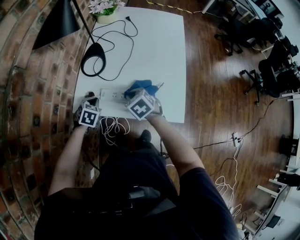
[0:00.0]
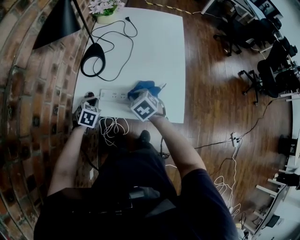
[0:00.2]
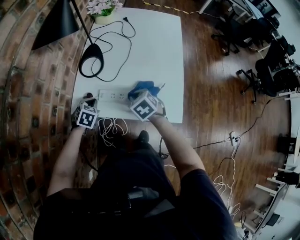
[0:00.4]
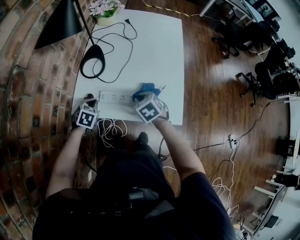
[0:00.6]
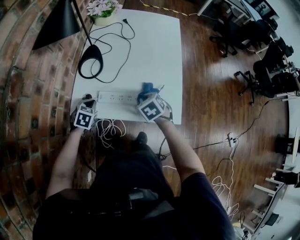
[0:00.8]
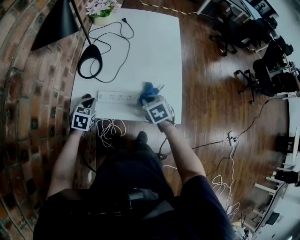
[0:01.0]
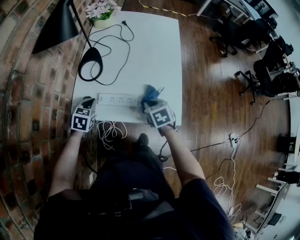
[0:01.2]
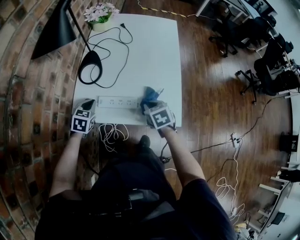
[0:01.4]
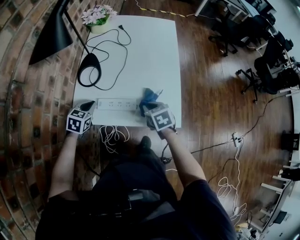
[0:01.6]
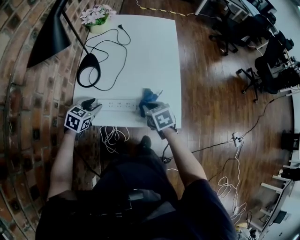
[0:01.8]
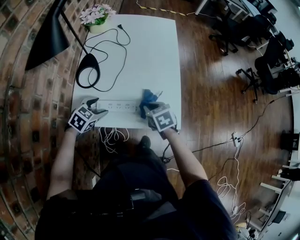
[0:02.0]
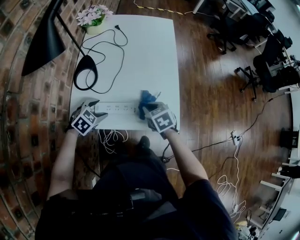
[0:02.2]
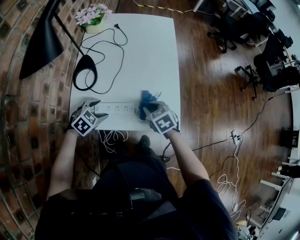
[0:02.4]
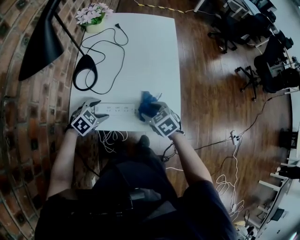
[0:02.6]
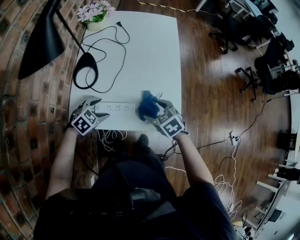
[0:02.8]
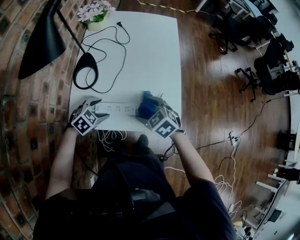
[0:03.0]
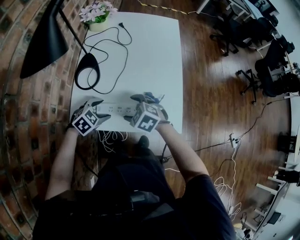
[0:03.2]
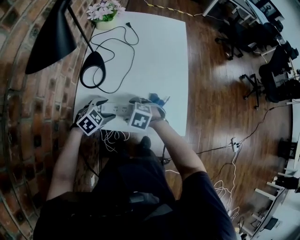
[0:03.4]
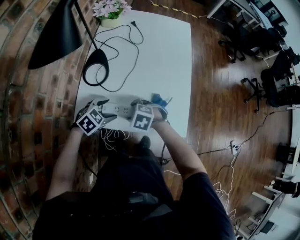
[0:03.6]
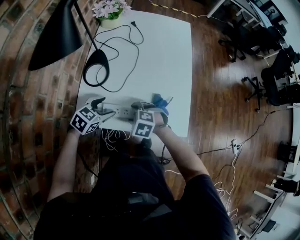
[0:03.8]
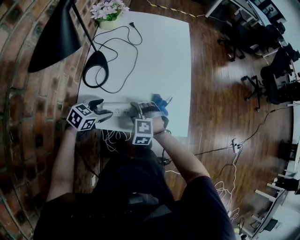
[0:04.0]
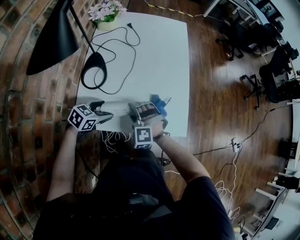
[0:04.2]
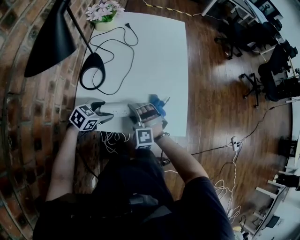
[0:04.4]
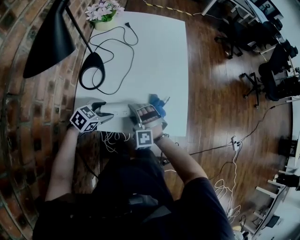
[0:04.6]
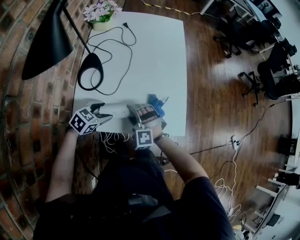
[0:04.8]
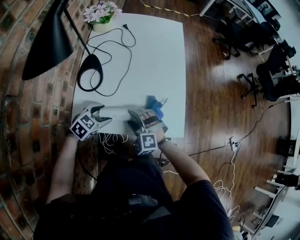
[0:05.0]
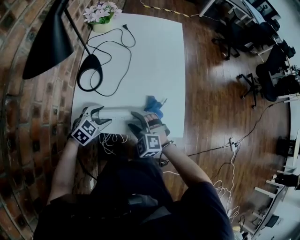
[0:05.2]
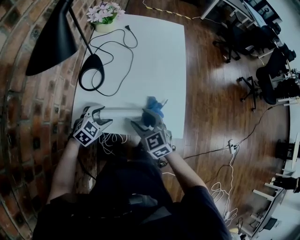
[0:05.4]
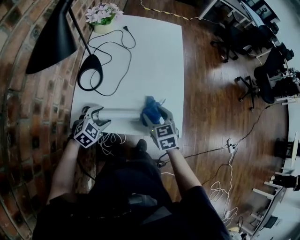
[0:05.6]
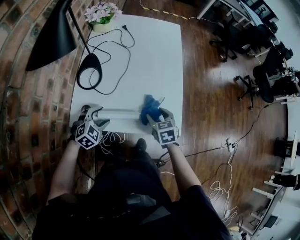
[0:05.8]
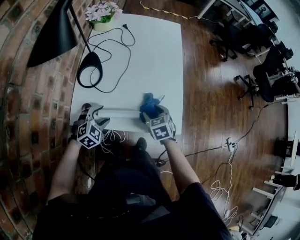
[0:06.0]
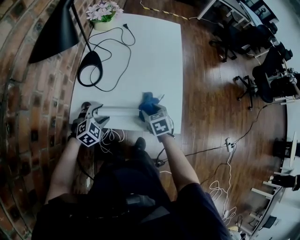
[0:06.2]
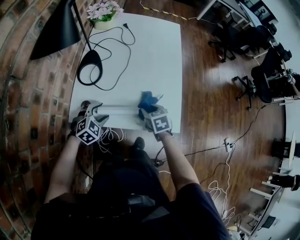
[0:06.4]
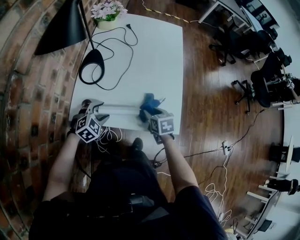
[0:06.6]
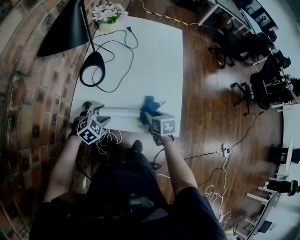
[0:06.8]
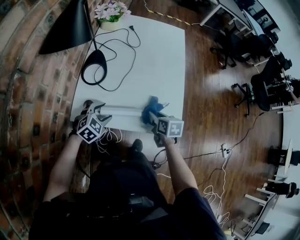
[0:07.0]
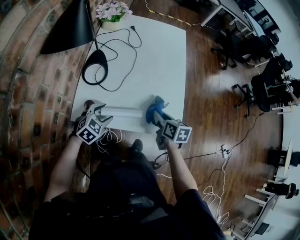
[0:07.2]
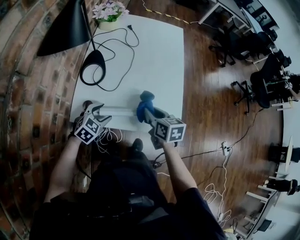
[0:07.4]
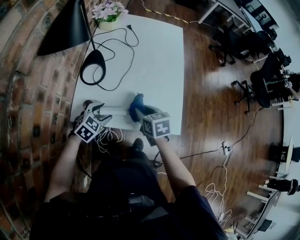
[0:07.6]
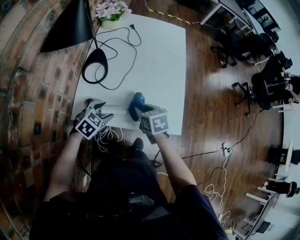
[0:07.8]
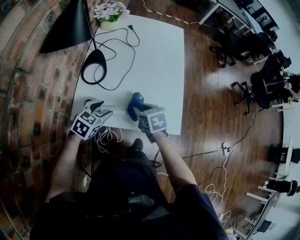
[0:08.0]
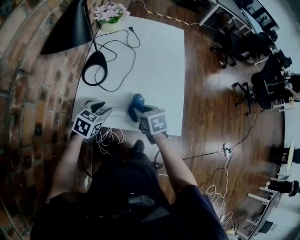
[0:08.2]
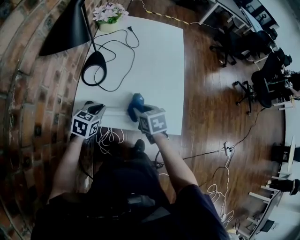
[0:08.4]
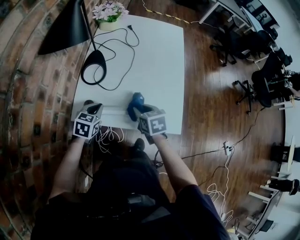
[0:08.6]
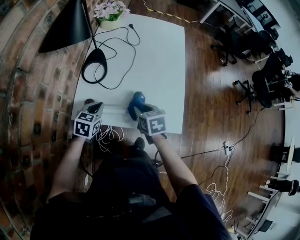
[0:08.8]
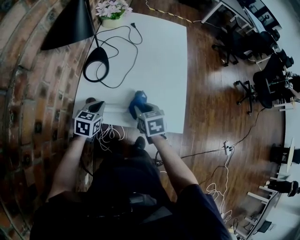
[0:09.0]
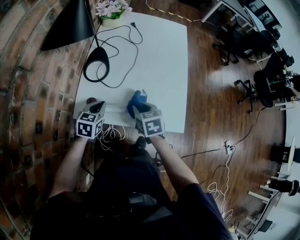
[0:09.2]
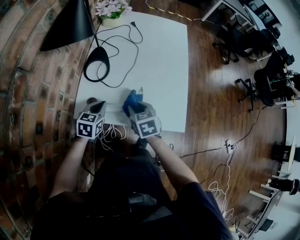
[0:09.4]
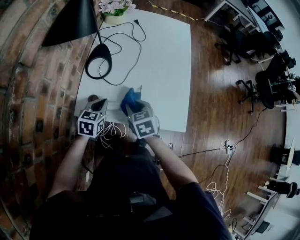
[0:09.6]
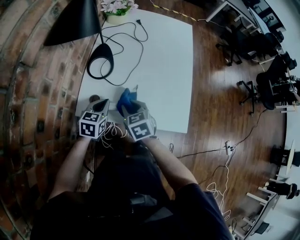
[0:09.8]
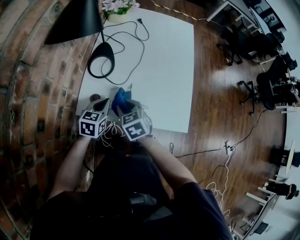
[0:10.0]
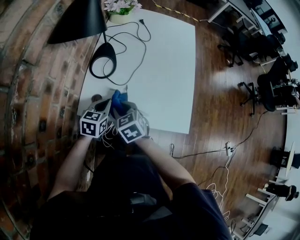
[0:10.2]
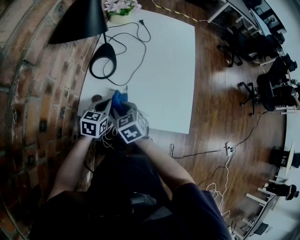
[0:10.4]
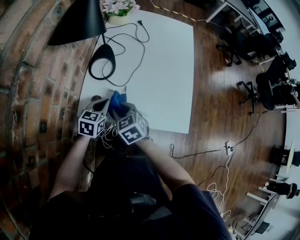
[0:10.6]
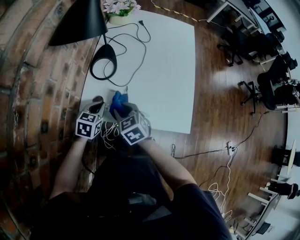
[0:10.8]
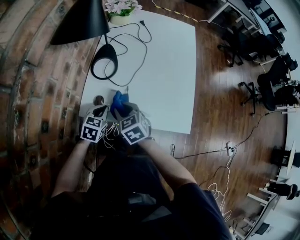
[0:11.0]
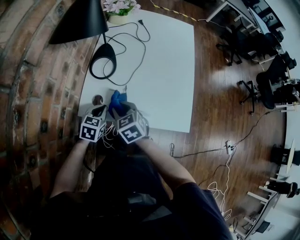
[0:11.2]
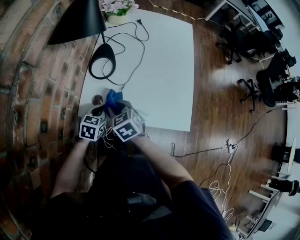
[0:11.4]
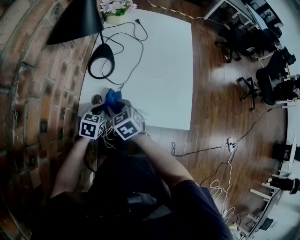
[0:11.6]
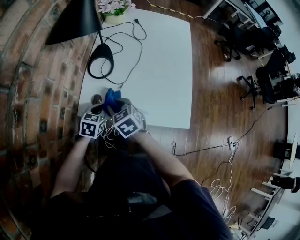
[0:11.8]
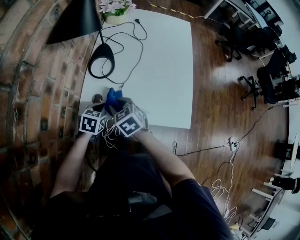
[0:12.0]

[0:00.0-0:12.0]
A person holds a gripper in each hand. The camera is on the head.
0:00.0 to 0:01.6: The right gripper goes approximately 10 cm to the right, and swivels about 20 degrees.
0:01.6 to 0:03.0: The left gripper travels to the right by approximately 5 cm, changes its angle by roughly 30 degrees, and opens its fingers. The right gripper rotates some 30 degrees, and opens.
0:03.0 to 0:04.4: The left gripper turns by some 20 degrees; the right gripper ends up roughly 10 cm from where it was, and twists approximately 50 degrees counterclockwise, seen from behind.
0:04.4 to 0:06.0: The left gripper swivels about 30 degrees, while the right gripper is displaced to the right by some 10 cm, and rolls clockwise, seen from behind, by approximately 70 degrees.
0:06.0 to 0:07.6: The right gripper goes some 10 cm to the left and upward, and closes its fingers.
0:07.6 to 0:09.0: The left gripper shifts by approximately 5 cm, swivels about 30 degrees, and closes its fingers.
0:09.0 to 0:10.4: The right gripper travels to the left by roughly 15 cm.
0:10.4 to 0:12.0: The grippers stay close to where they were, moving slightly.

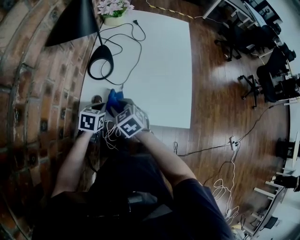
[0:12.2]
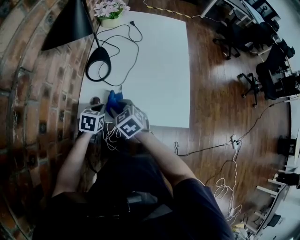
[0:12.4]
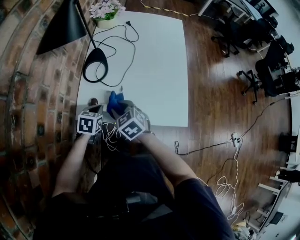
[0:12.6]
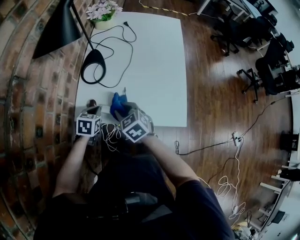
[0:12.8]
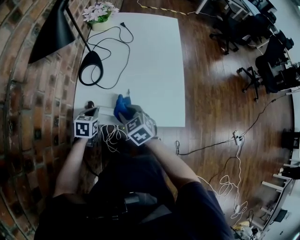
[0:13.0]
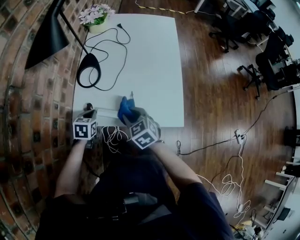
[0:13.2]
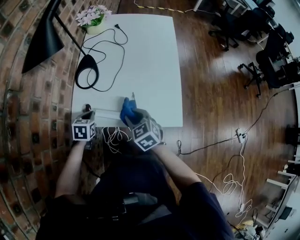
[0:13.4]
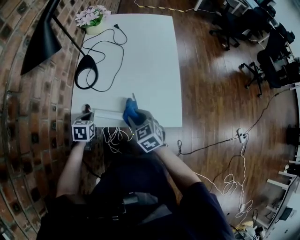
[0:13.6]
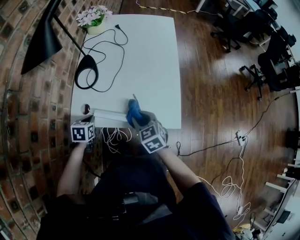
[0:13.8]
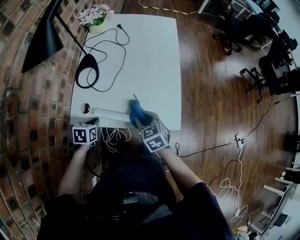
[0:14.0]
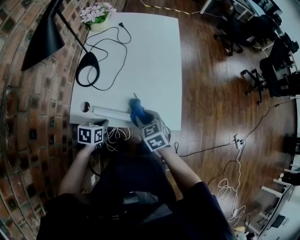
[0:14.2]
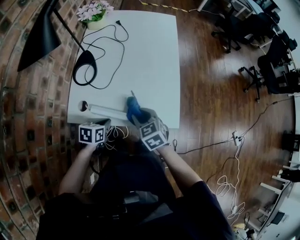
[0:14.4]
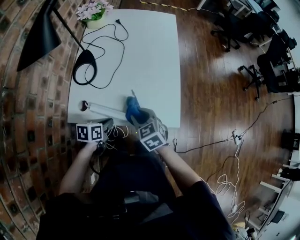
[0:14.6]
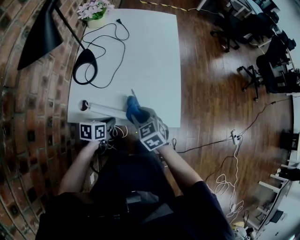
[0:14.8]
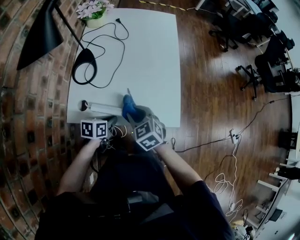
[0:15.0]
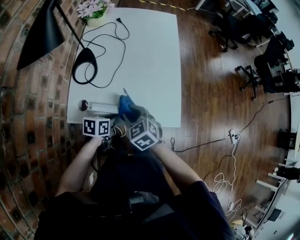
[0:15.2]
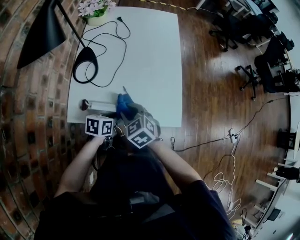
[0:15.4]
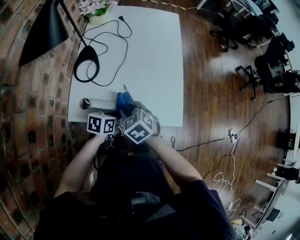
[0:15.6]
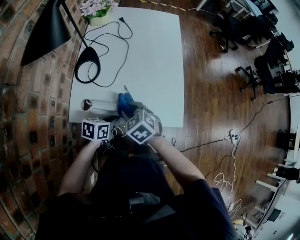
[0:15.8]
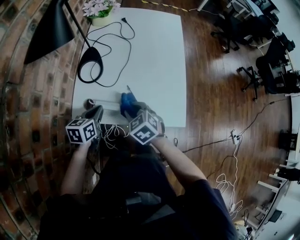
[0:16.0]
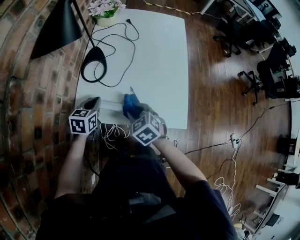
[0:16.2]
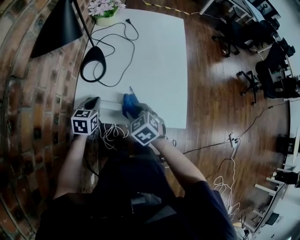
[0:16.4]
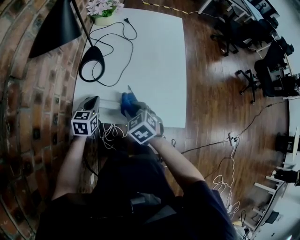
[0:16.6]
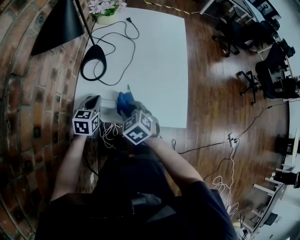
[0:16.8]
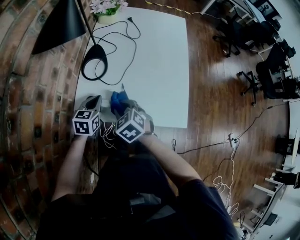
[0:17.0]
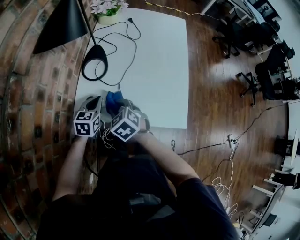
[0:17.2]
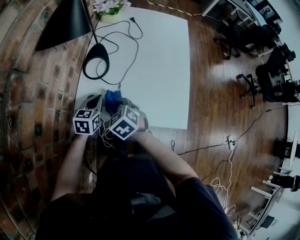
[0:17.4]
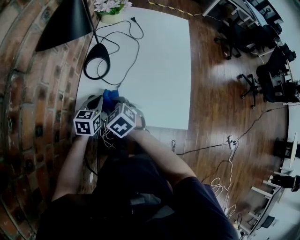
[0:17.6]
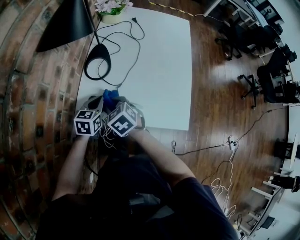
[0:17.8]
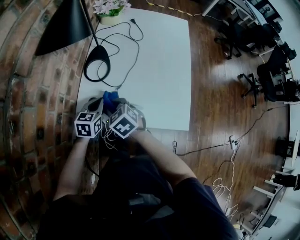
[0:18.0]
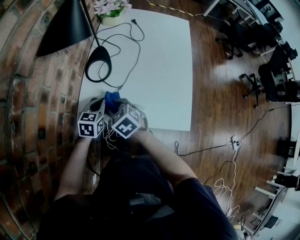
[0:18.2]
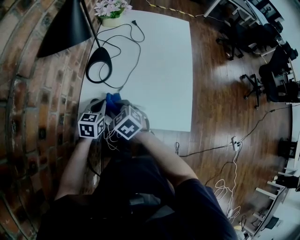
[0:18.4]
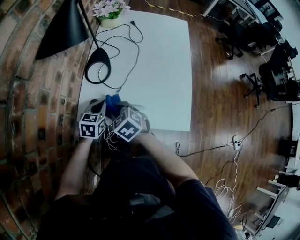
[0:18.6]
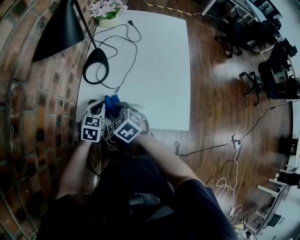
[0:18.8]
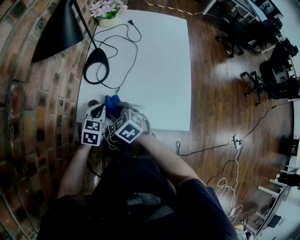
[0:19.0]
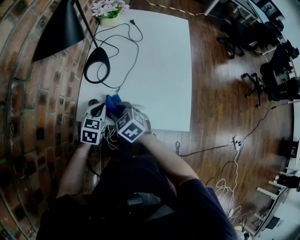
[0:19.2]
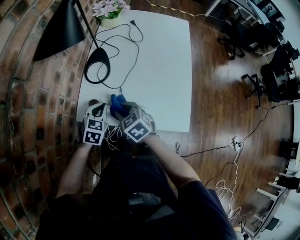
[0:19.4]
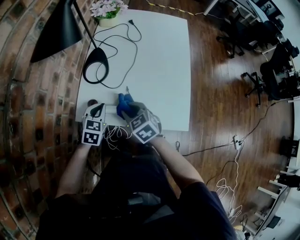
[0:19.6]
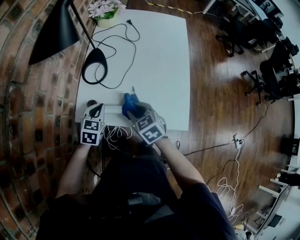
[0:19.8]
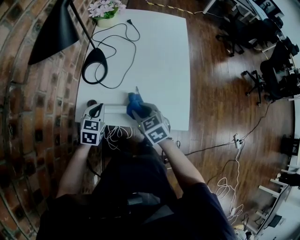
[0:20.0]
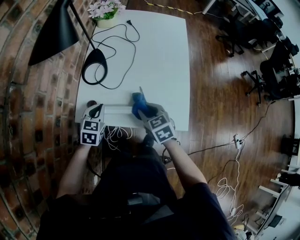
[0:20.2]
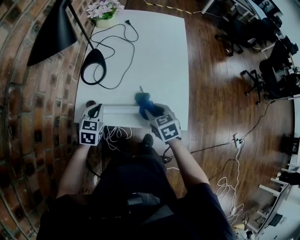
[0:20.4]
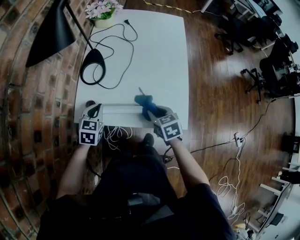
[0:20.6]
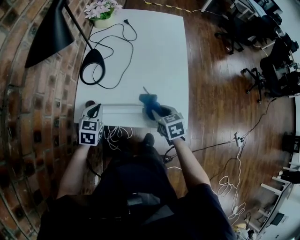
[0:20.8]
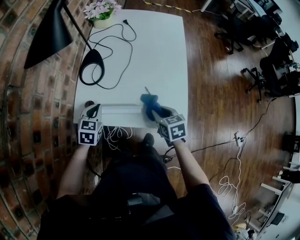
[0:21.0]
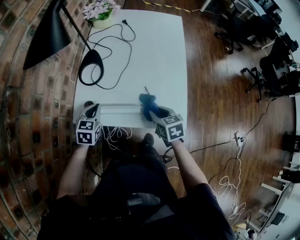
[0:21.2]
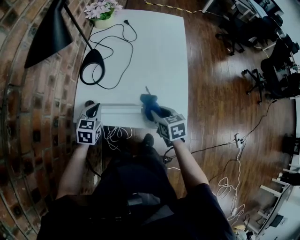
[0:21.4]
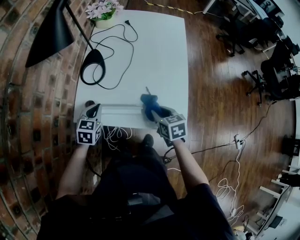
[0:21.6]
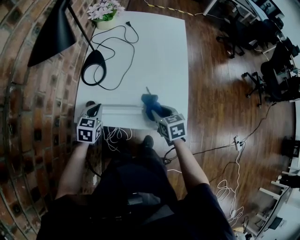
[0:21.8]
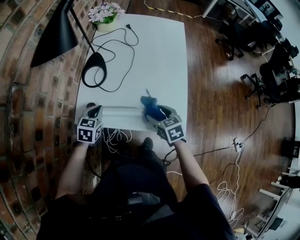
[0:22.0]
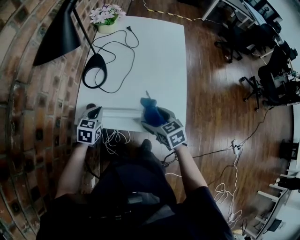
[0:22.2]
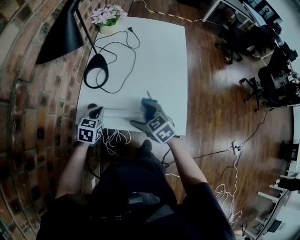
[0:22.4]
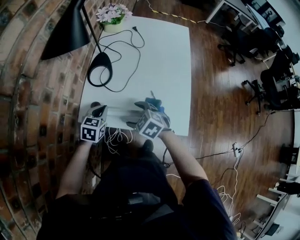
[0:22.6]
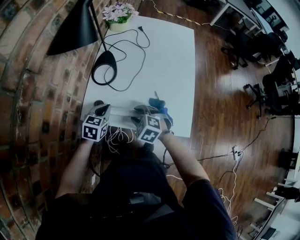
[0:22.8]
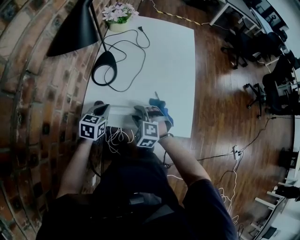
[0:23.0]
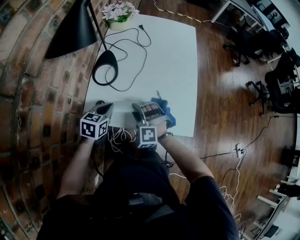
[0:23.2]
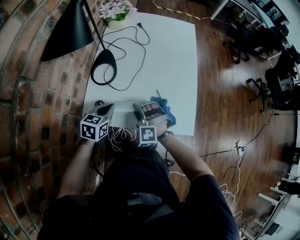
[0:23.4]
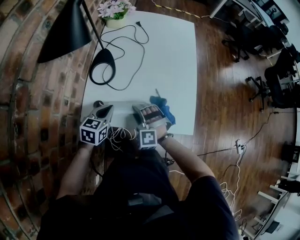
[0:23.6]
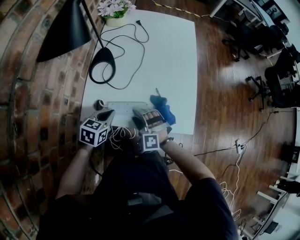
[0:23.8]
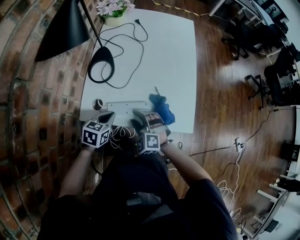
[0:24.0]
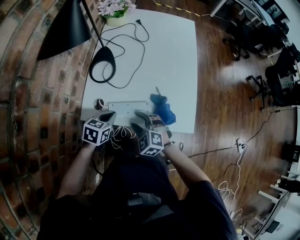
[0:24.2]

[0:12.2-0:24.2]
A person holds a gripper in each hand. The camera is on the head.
0:12.2 to 0:13.8: The right gripper moves to the right, approximately 15 cm.
0:13.8 to 0:15.2: The left gripper goes about 15 cm to the right, and turns by some 30 degrees. The right gripper moves roughly 5 cm.
0:15.2 to 0:16.6: The left gripper is displaced to the left, forward and upward by roughly 15 cm, and swivels approximately 40 degrees.
0:16.6 to 0:18.2: The right gripper travels to the left by roughly 10 cm.
0:18.2 to 0:19.8: The right gripper heads to the right, covering some 10 cm.
0:19.8 to 0:21.2: The right gripper goes roughly 10 cm to the right, and turns by some 20 degrees.
0:21.2 to 0:22.6: The right gripper heads to the left, covering some 15 cm, rolls counterclockwise, seen from behind, by about 40 degrees, and opens its fingers.
0:22.6 to 0:24.2: The right gripper changes its angle by some 20 degrees, and closes. The left gripper ends up about 5 cm from where it was.
